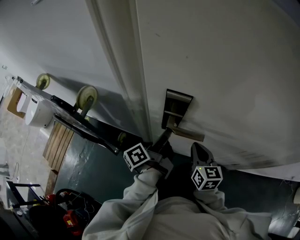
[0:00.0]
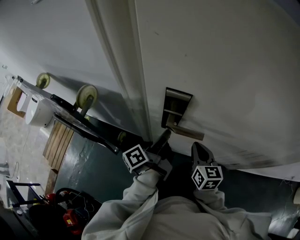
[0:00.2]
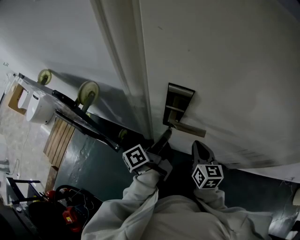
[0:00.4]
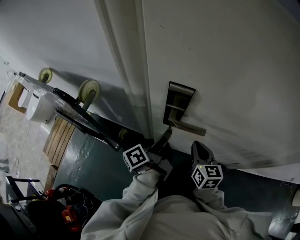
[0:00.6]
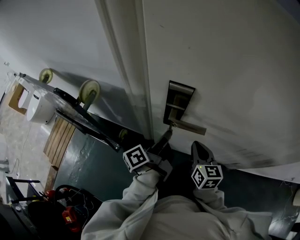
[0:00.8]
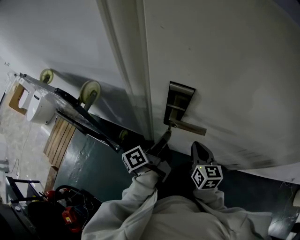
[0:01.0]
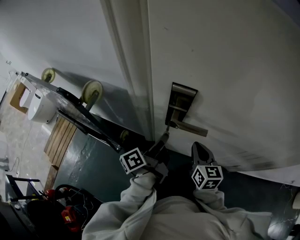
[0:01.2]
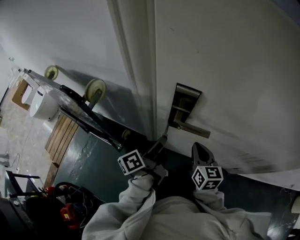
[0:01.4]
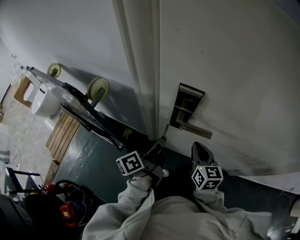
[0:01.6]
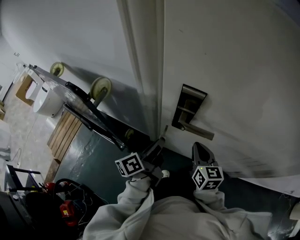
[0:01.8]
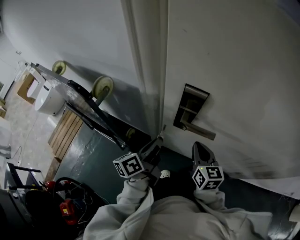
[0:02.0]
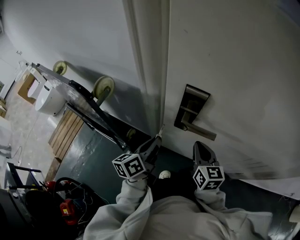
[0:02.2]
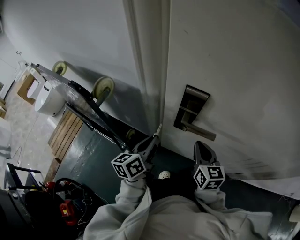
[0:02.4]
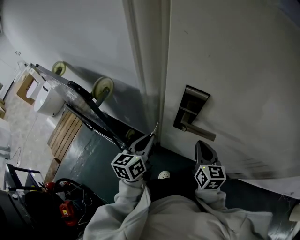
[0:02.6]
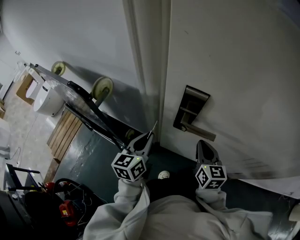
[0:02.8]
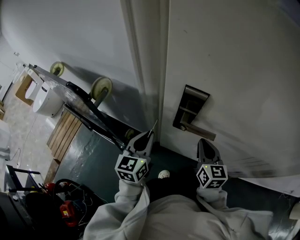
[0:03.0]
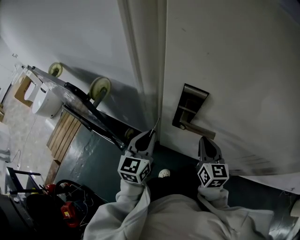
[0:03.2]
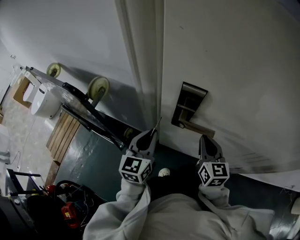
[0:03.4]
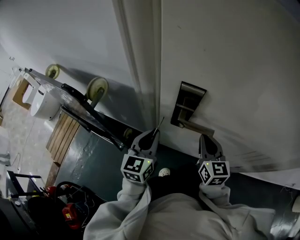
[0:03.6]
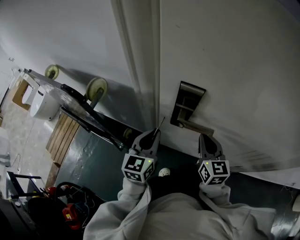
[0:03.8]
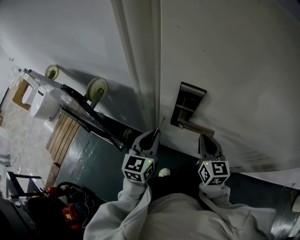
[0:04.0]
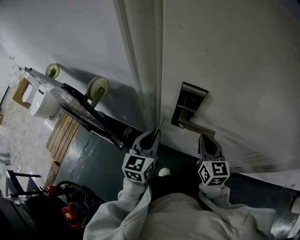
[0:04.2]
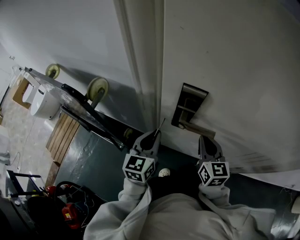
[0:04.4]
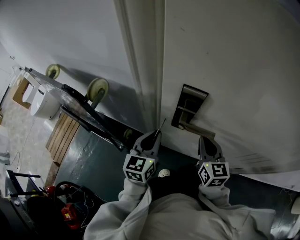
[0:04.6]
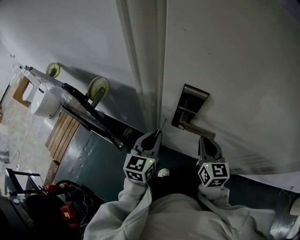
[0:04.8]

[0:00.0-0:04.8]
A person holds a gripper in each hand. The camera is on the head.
0:00.0 to 0:01.6: The left gripper moves backward, some 5 cm.
0:01.6 to 0:03.2: The left gripper heads to the left, covering some 5 cm, and rolls clockwise, seen from behind, by approximately 60 degrees.
0:03.2 to 0:04.8: The grippers stay close to where they were, moving slightly.

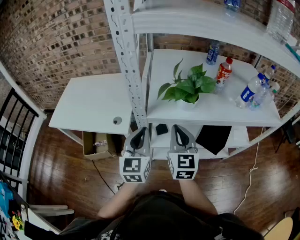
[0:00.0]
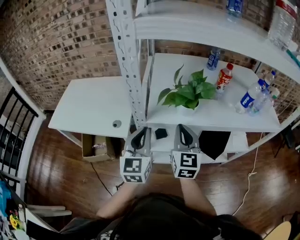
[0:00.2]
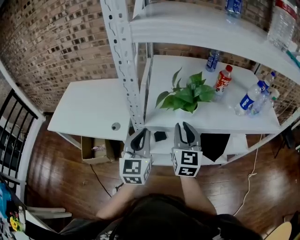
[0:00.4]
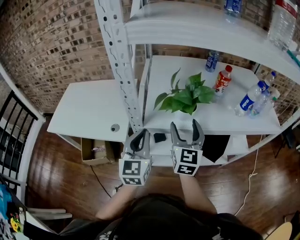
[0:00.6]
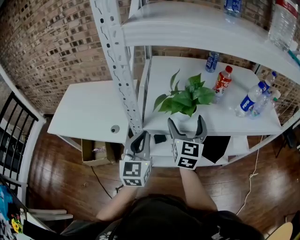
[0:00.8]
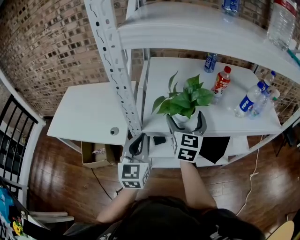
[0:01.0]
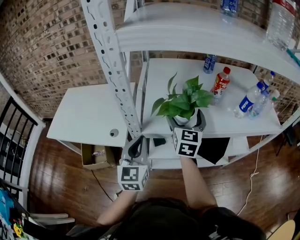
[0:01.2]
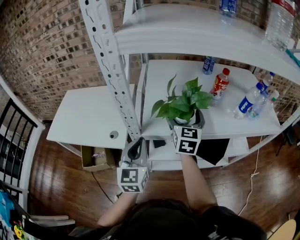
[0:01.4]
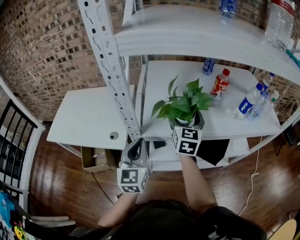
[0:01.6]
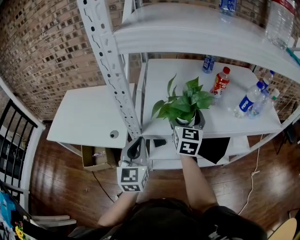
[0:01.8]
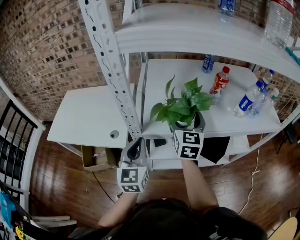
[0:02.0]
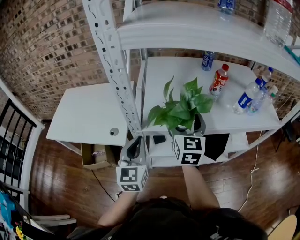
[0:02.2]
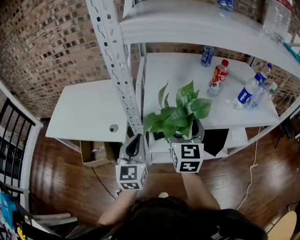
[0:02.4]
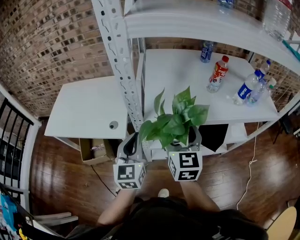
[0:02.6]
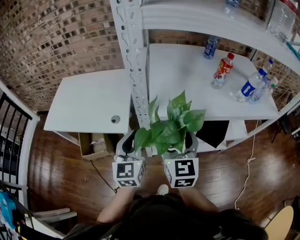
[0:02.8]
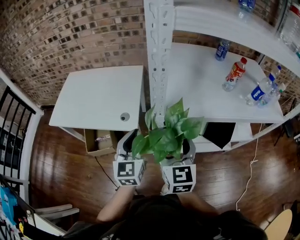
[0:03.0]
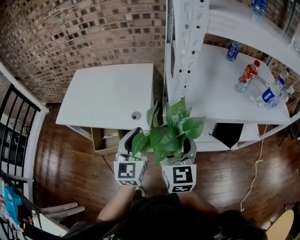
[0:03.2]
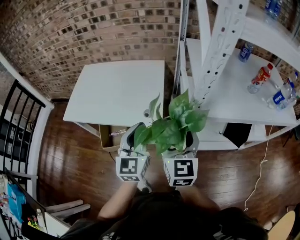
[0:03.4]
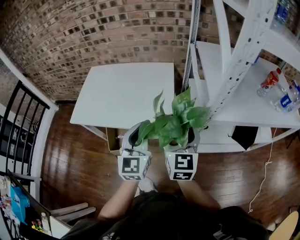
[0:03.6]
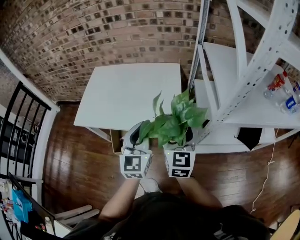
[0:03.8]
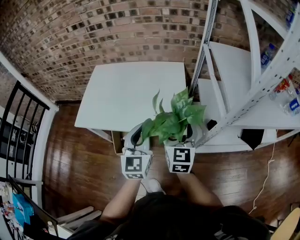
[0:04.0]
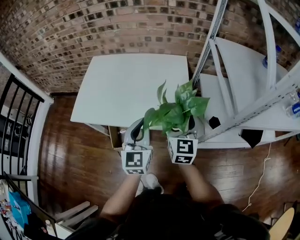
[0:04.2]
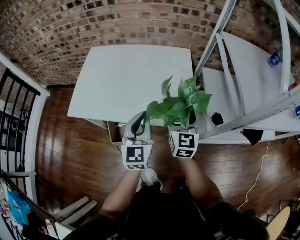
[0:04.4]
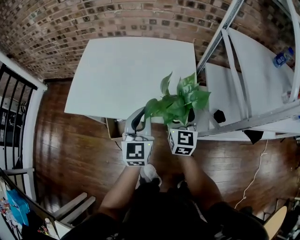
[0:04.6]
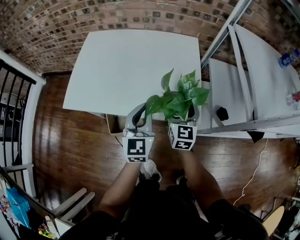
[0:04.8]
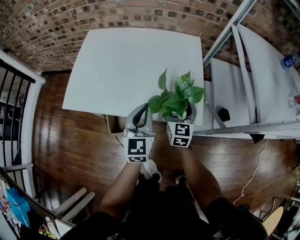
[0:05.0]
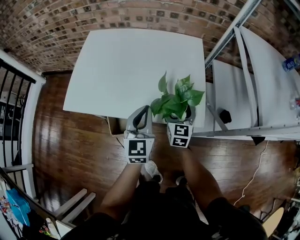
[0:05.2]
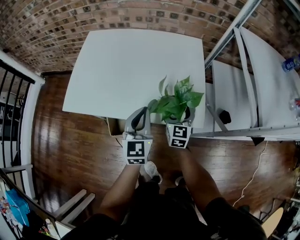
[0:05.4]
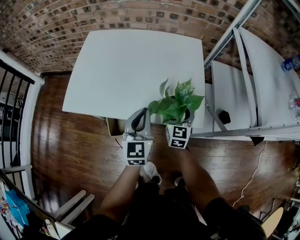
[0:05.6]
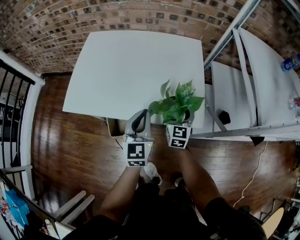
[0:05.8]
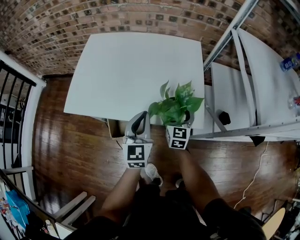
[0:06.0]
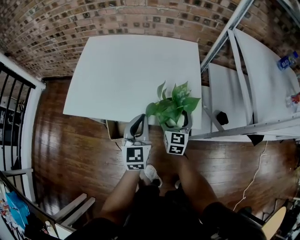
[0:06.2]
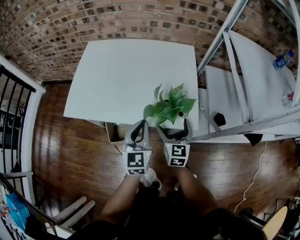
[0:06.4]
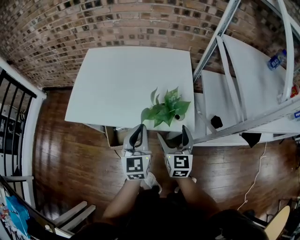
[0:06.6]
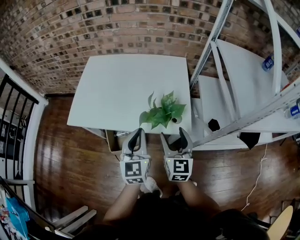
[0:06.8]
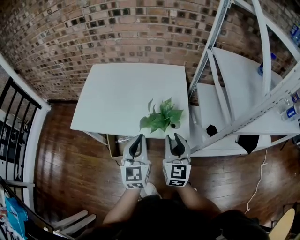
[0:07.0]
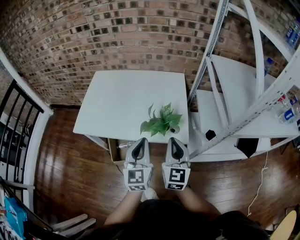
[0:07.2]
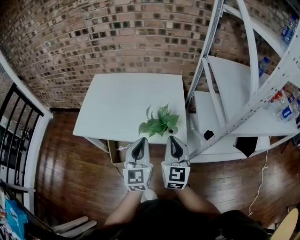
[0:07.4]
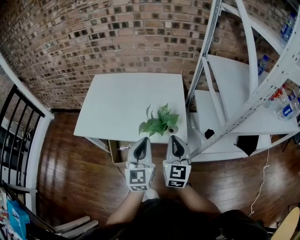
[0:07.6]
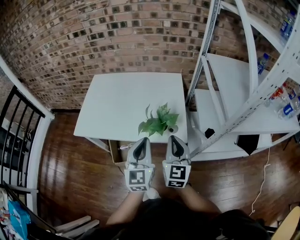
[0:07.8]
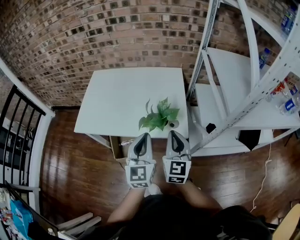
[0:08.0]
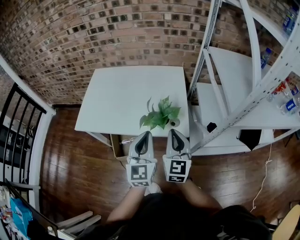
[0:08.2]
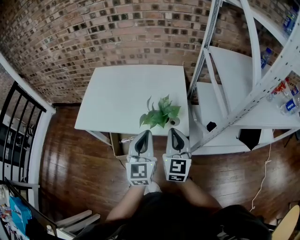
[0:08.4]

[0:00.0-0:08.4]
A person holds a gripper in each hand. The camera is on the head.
0:00.0 to 0:01.4: The right gripper moves forward, roughly 15 cm, and opens.
0:01.4 to 0:02.8: The right gripper heads backward and to the left, covering some 20 cm, while the left gripper goes approximately 5 cm to the left.
0:02.8 to 0:04.2: The left gripper is displaced to the left by about 35 cm. The right gripper heads to the left and forward, covering roughly 35 cm.
0:04.2 to 0:05.6: The left gripper moves downward, to the left and forward, about 15 cm; the right gripper goes approximately 20 cm downward and forward.
0:05.6 to 0:07.0: The right gripper is displaced upward and backward by some 20 cm, and closes up. The left gripper moves backward and upward, roughly 10 cm.
0:07.0 to 0:08.4: The left gripper changes place by approximately 5 cm.

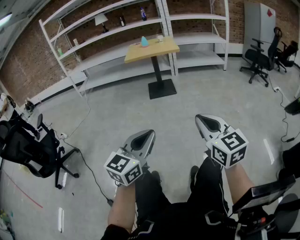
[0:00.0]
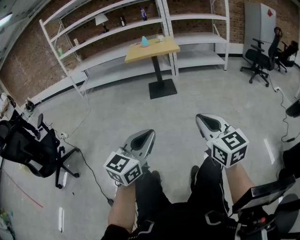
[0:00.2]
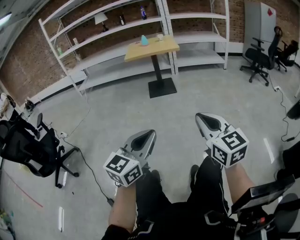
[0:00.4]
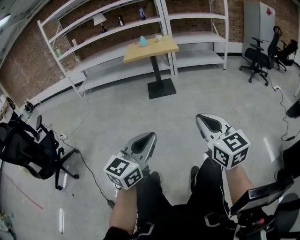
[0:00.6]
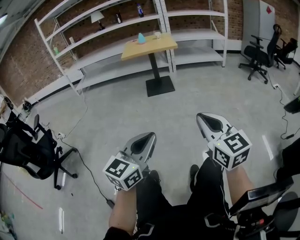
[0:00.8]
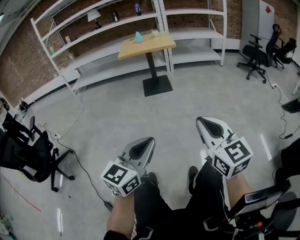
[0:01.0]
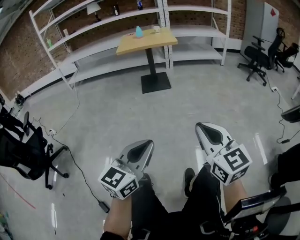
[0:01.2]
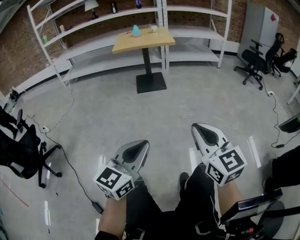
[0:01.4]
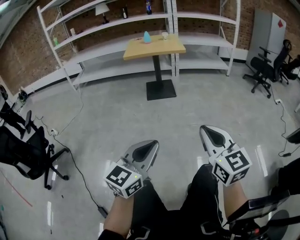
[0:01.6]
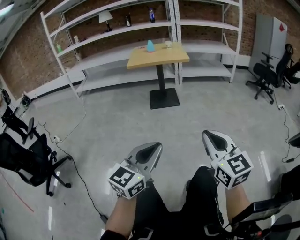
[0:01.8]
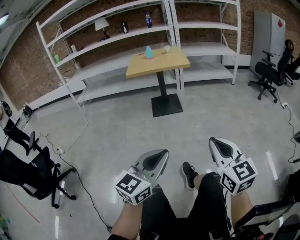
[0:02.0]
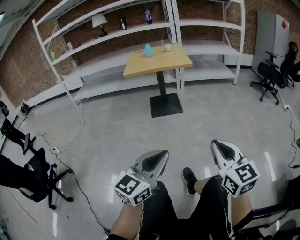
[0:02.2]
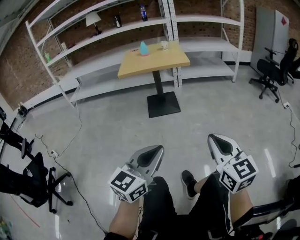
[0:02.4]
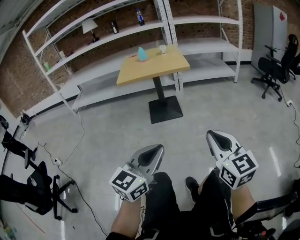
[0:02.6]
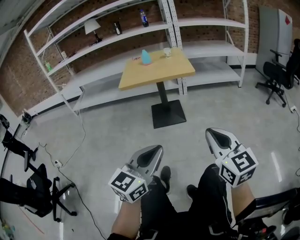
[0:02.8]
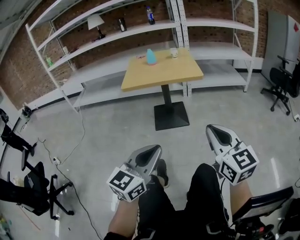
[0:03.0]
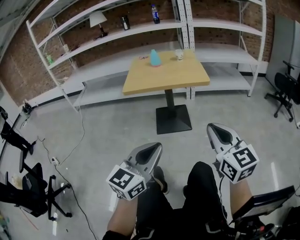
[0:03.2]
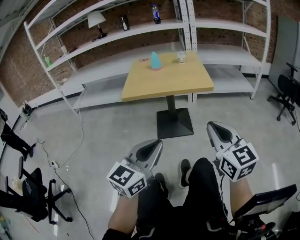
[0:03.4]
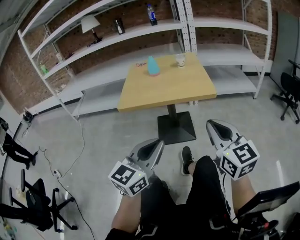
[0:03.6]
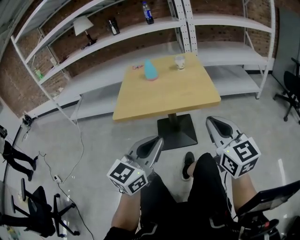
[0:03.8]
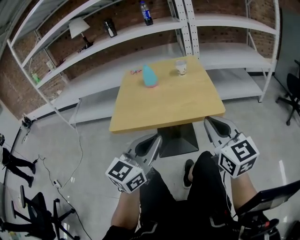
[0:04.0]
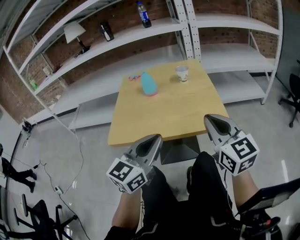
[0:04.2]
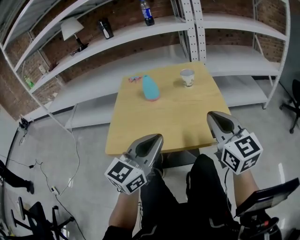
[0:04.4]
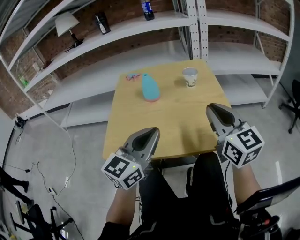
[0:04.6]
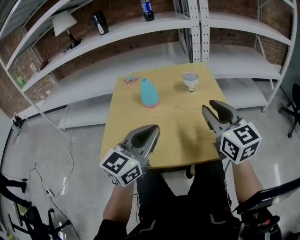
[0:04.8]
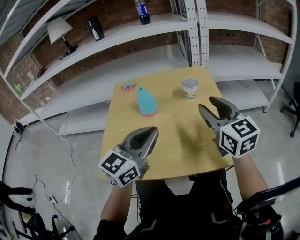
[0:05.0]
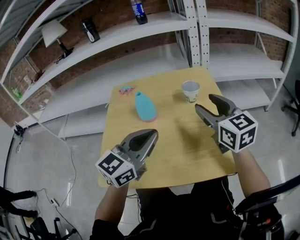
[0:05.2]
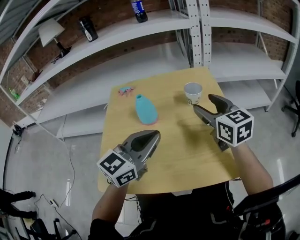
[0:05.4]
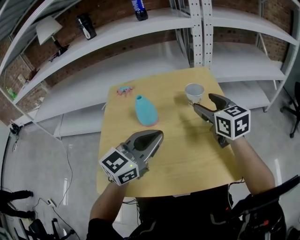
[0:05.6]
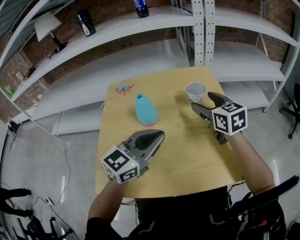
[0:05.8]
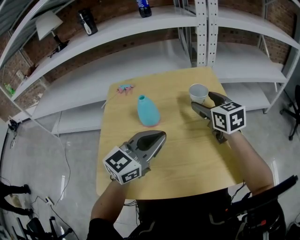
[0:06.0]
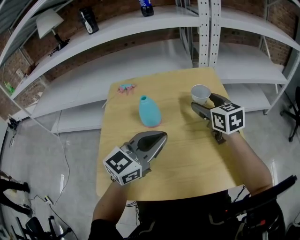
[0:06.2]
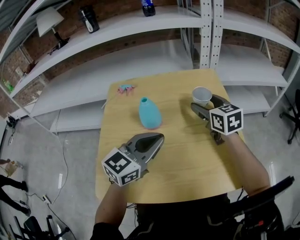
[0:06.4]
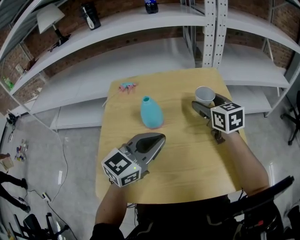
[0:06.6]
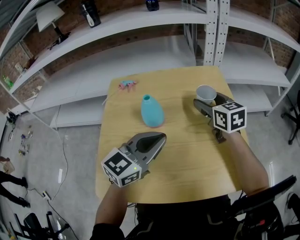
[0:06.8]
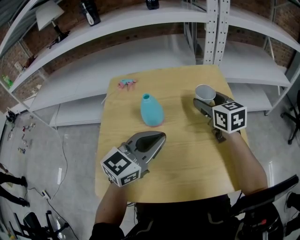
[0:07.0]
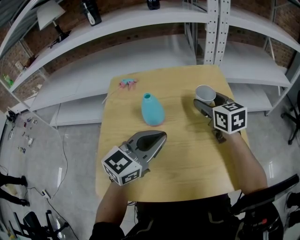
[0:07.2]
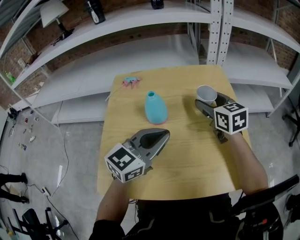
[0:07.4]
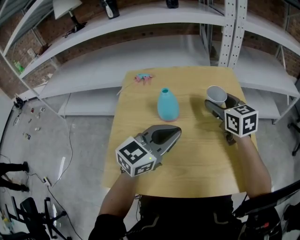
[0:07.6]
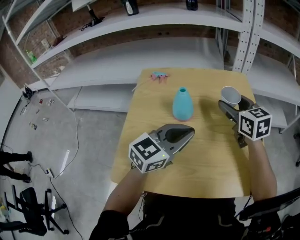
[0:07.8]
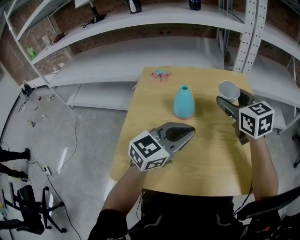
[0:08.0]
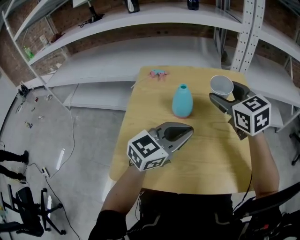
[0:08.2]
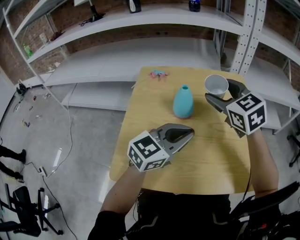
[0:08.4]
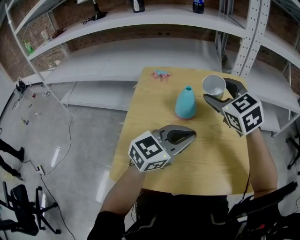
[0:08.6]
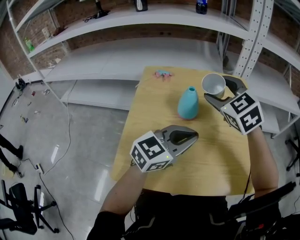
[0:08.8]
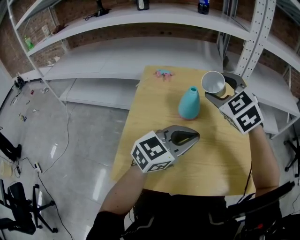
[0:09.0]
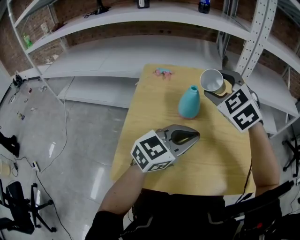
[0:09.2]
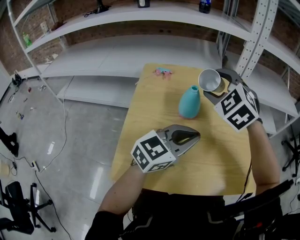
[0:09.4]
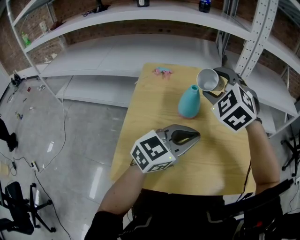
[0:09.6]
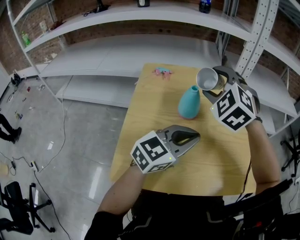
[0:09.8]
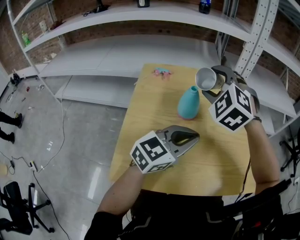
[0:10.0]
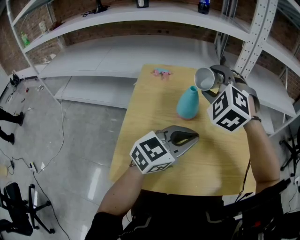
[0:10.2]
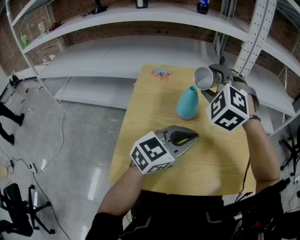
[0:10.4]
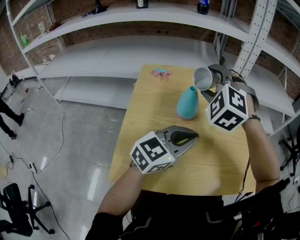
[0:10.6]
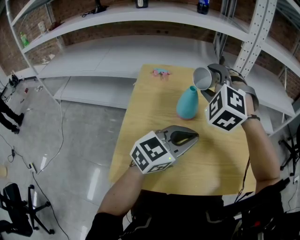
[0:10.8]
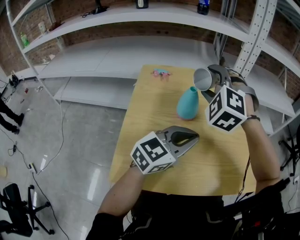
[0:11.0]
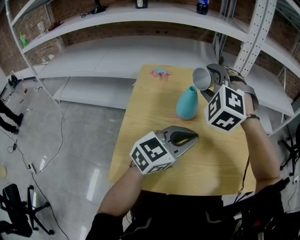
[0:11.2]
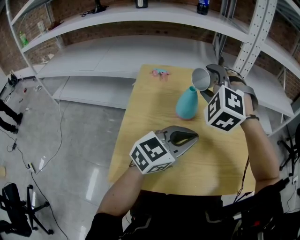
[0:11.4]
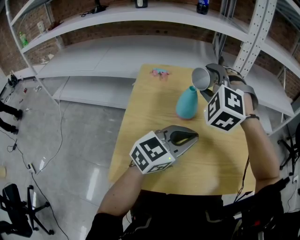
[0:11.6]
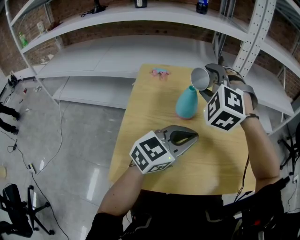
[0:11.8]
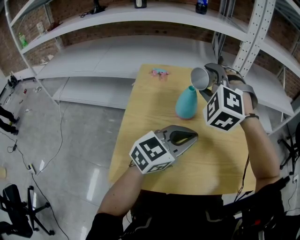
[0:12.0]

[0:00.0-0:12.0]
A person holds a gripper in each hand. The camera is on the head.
0:00.0 to 0:01.6: The grippers both shift forward by about 10 cm.
0:01.6 to 0:03.0: Both grippers move forward, approximately 40 cm.
0:03.0 to 0:04.4: Both grippers are carried forward, some 50 cm.
0:04.4 to 0:06.0: Both grippers move forward, some 25 cm. The right gripper opens up.
0:06.0 to 0:07.6: The grippers make only small movements.
0:07.6 to 0:09.0: The right gripper goes roughly 15 cm to the left, upward and backward, and rolls counterclockwise, seen from behind, by approximately 40 degrees.
0:09.0 to 0:10.4: The right gripper rotates roughly 30 degrees.
0:10.4 to 0:12.0: The grippers stay close to where they were, moving slightly.
